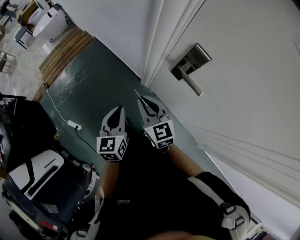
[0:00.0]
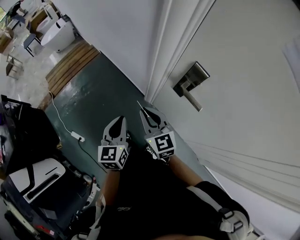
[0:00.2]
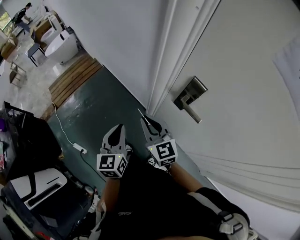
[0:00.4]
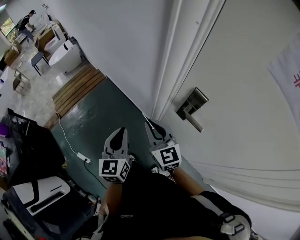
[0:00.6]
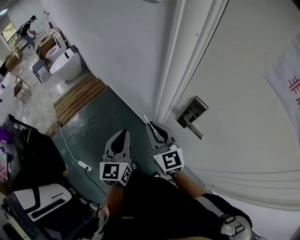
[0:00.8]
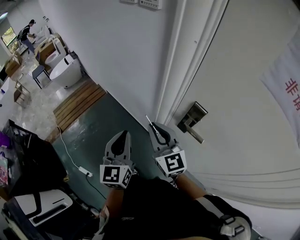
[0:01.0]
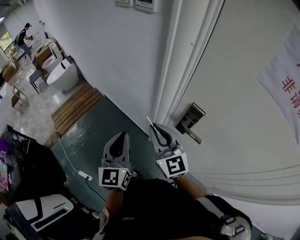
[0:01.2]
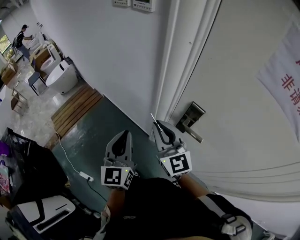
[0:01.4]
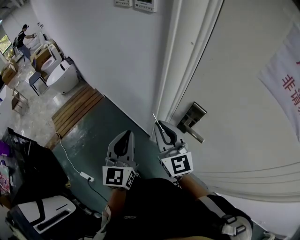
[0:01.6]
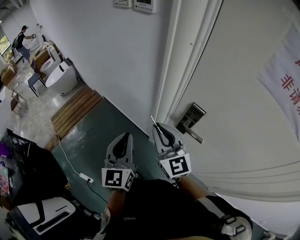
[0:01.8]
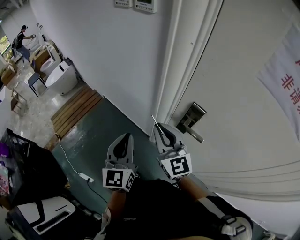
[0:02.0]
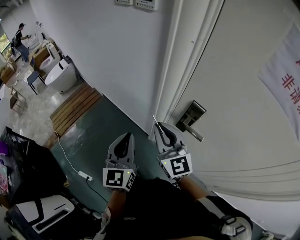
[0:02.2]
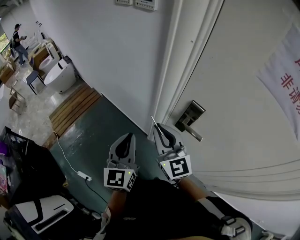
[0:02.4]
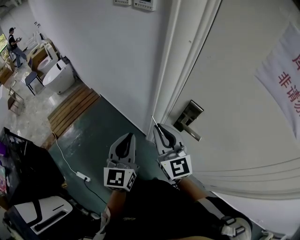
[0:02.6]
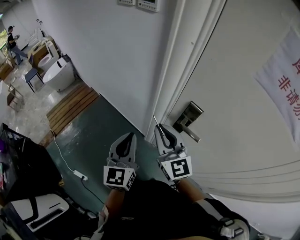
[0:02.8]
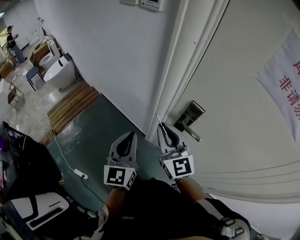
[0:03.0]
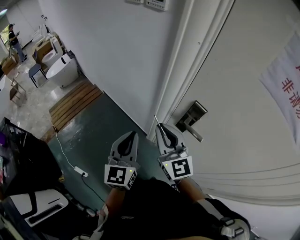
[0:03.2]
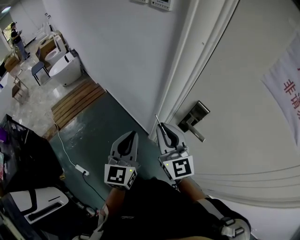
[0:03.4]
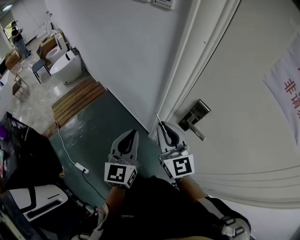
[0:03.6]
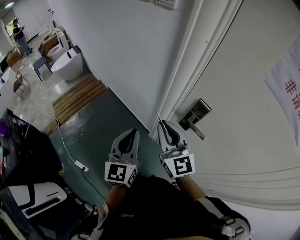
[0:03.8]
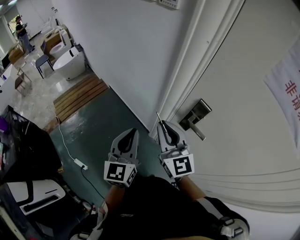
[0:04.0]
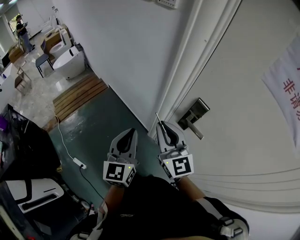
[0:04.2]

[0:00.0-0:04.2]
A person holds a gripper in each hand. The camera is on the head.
0:00.0 to 0:01.4: Both grippers travel together upward, about 20 cm. The left gripper rotates roughly 20 degrees. Meanwhile the right gripper changes its angle by approximately 20 degrees.
0:01.4 to 0:04.2: The grippers stay close to where they were, moving slightly.

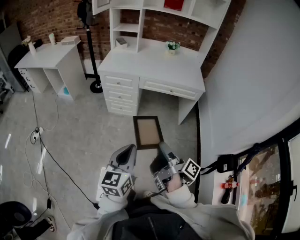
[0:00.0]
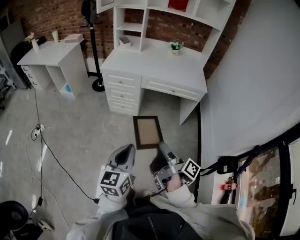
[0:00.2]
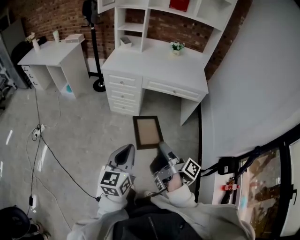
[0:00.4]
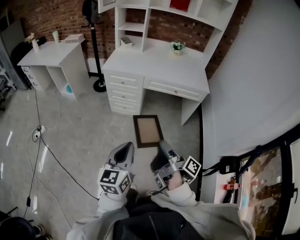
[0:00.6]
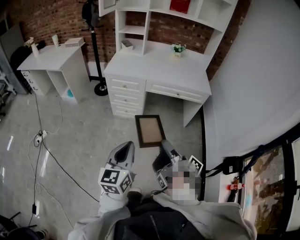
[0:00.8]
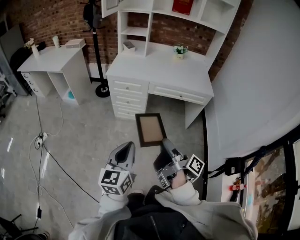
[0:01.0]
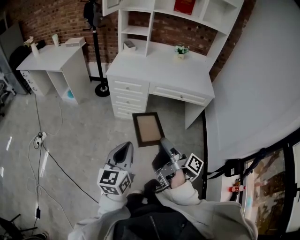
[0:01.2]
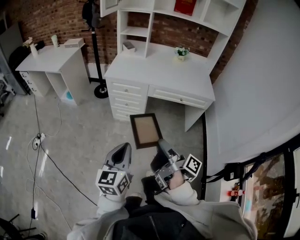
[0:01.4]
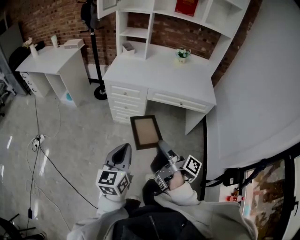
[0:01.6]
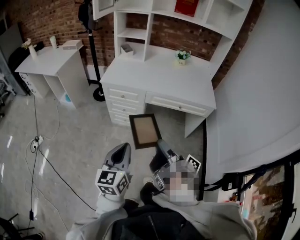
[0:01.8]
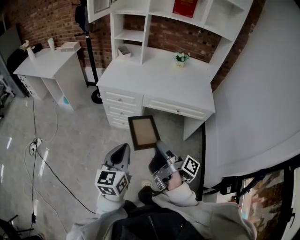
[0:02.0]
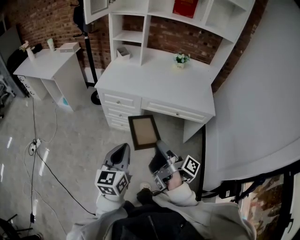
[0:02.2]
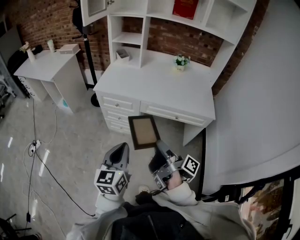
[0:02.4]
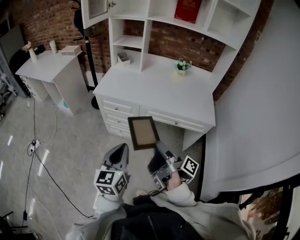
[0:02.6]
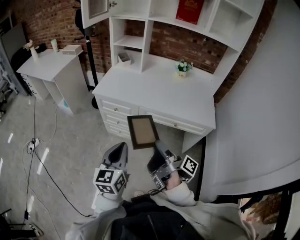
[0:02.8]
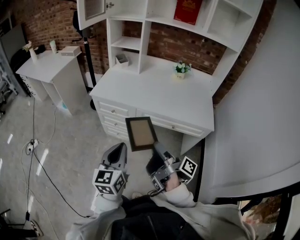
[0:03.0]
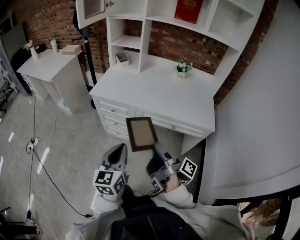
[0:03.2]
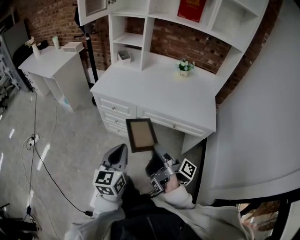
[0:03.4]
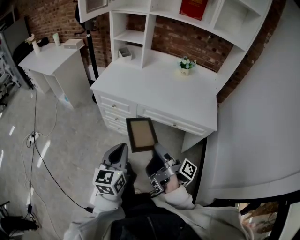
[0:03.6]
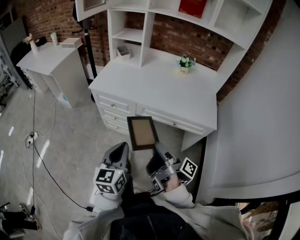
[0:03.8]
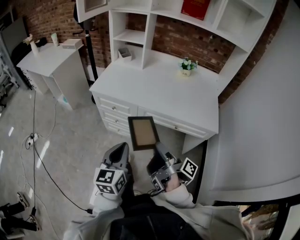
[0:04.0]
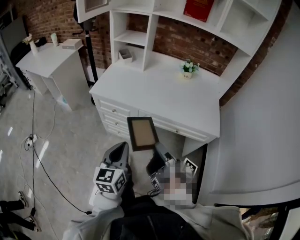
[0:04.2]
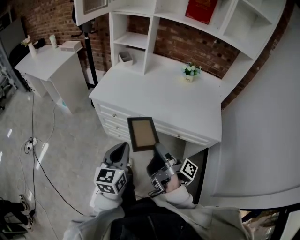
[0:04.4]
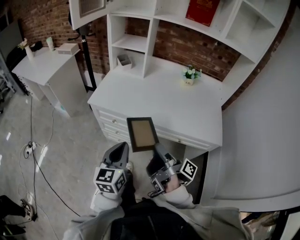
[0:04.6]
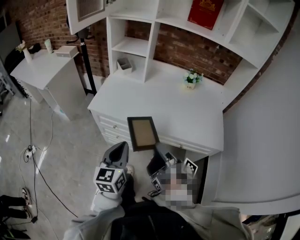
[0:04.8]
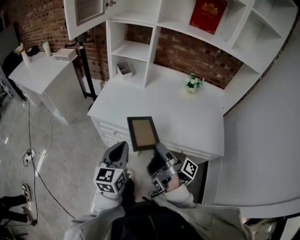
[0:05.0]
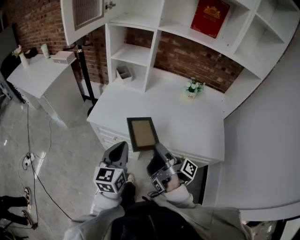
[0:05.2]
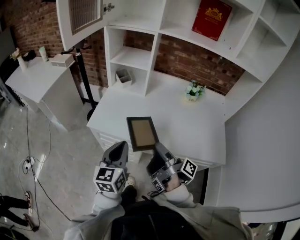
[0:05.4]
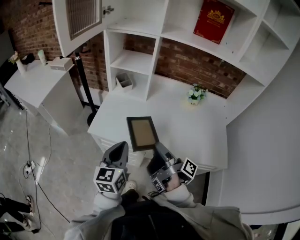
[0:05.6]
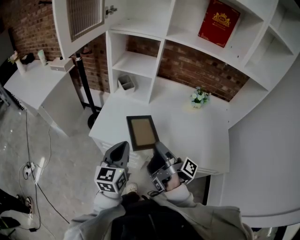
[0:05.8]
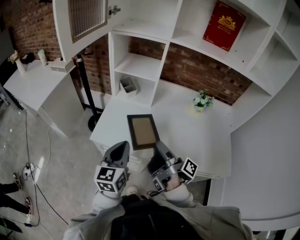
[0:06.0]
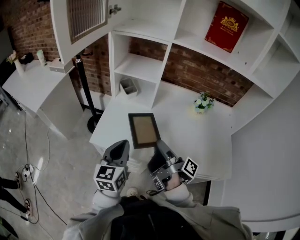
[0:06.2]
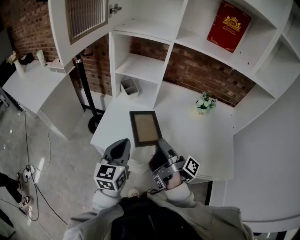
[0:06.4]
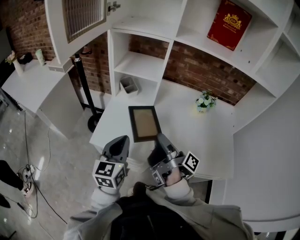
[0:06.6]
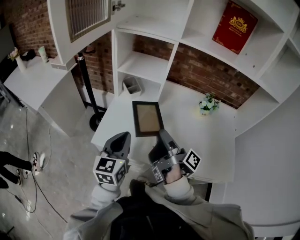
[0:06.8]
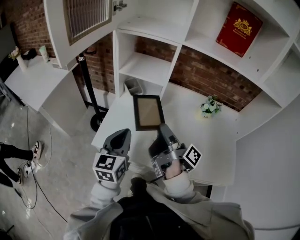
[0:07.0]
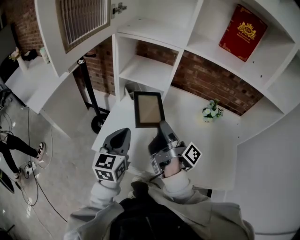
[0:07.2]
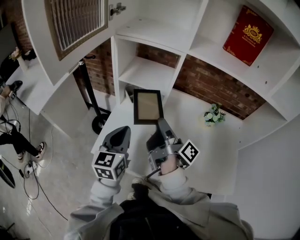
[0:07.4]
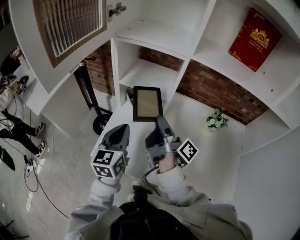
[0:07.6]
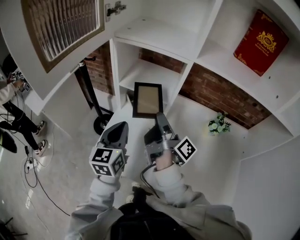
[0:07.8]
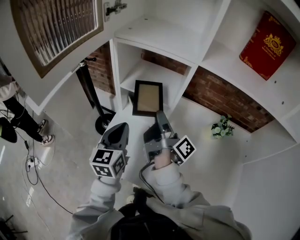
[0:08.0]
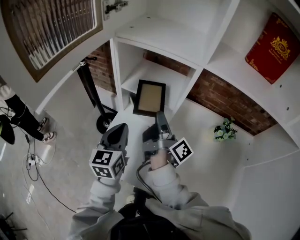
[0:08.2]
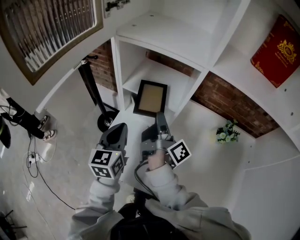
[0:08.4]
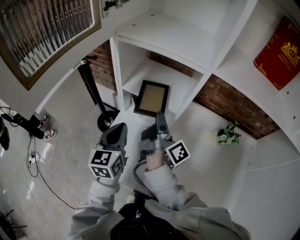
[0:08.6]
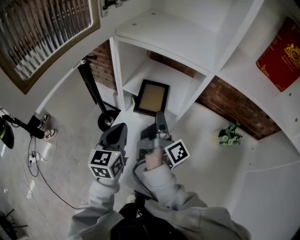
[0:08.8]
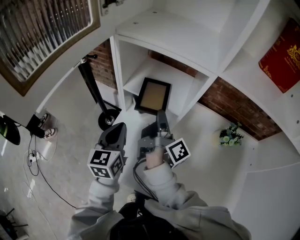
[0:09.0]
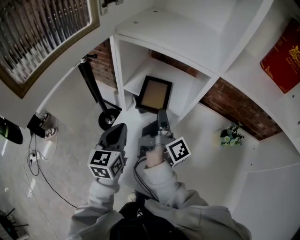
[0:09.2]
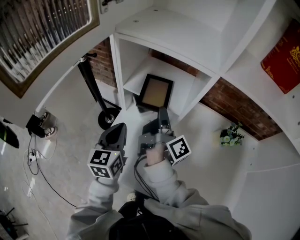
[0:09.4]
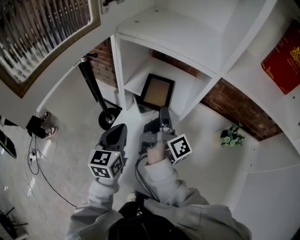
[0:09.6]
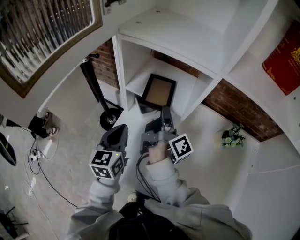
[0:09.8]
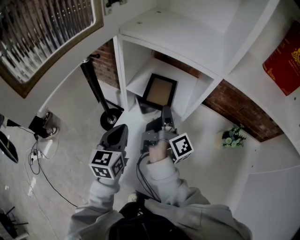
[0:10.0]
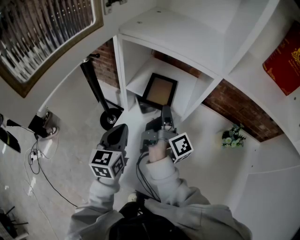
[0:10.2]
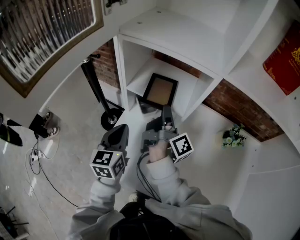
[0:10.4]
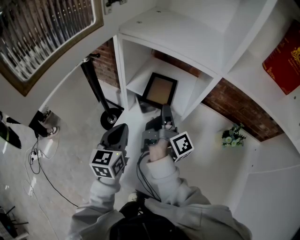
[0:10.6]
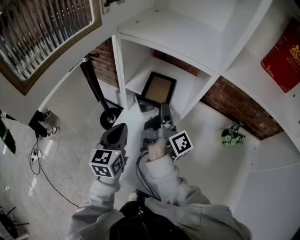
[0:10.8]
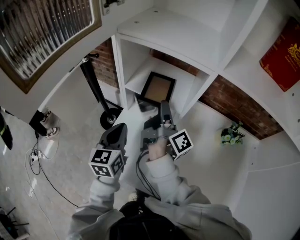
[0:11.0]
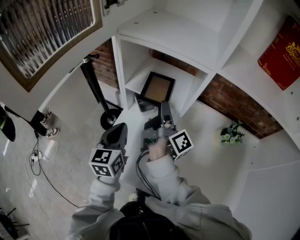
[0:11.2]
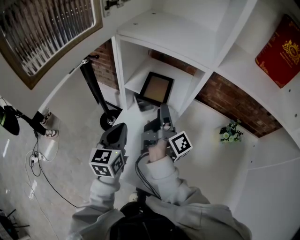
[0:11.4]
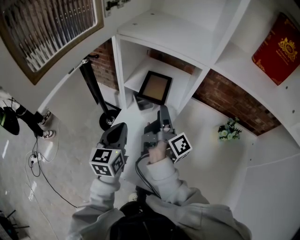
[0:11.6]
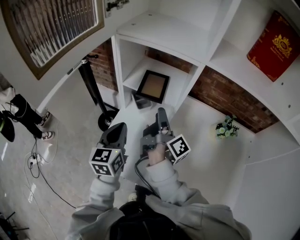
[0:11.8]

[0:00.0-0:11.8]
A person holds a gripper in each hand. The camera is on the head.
0:00.0 to 0:01.4: The left gripper ends up some 15 cm from where it was.
0:01.4 to 0:03.0: The left gripper changes place by approximately 25 cm.
0:03.0 to 0:04.4: The left gripper changes place by some 10 cm.
0:04.4 to 0:06.0: The left gripper ends up about 30 cm from where it was.
0:06.0 to 0:07.4: The left gripper ends up roughly 15 cm from where it was.
0:07.4 to 0:08.8: The left gripper changes place by about 15 cm.

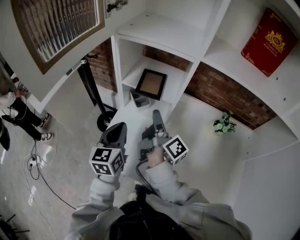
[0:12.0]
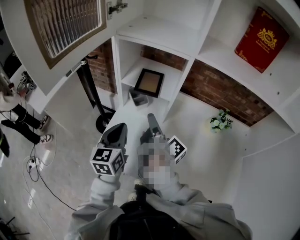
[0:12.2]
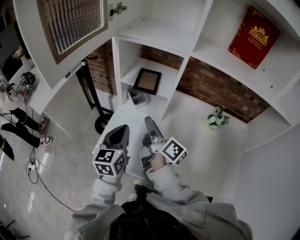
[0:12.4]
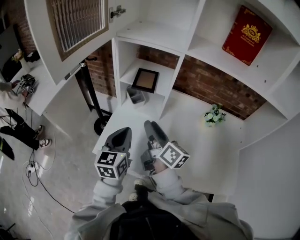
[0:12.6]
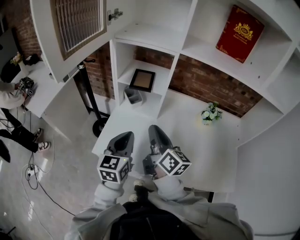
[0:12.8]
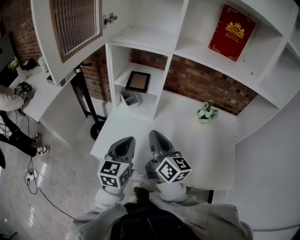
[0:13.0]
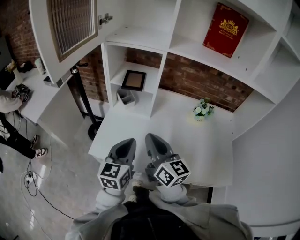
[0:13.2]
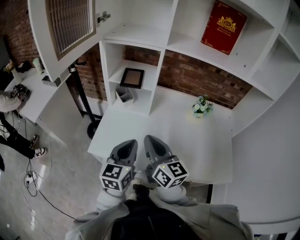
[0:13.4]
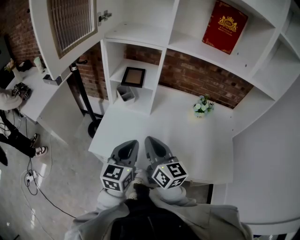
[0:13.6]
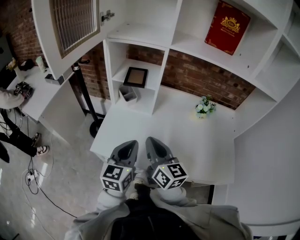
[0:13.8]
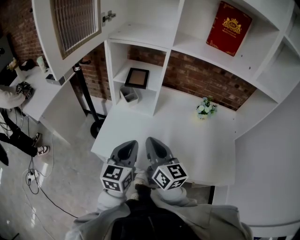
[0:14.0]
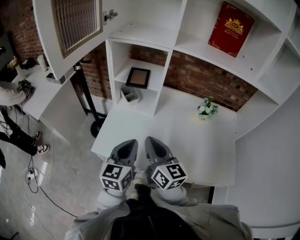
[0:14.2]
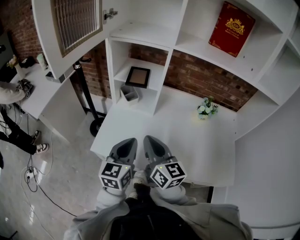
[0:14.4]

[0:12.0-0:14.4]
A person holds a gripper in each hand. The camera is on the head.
0:12.0 to 0:13.2: The left gripper ends up about 20 cm from where it was.

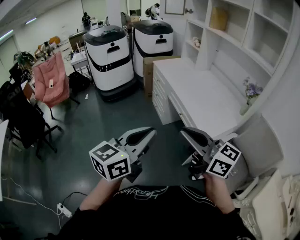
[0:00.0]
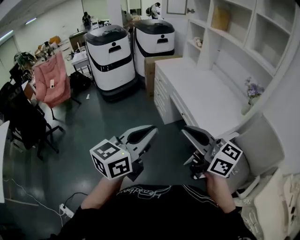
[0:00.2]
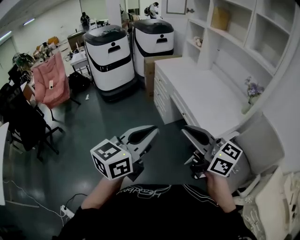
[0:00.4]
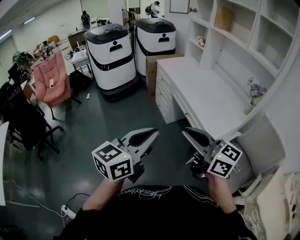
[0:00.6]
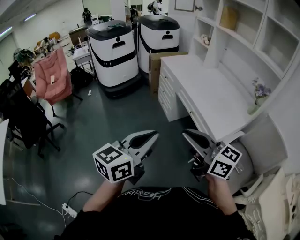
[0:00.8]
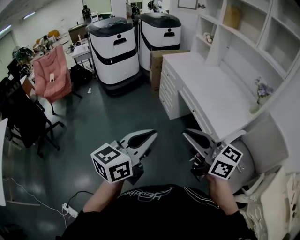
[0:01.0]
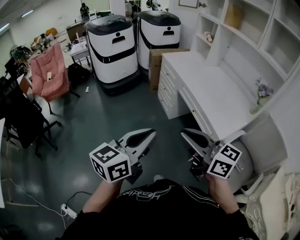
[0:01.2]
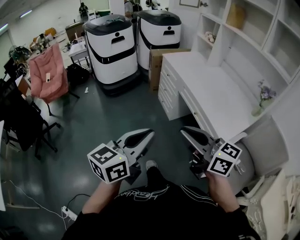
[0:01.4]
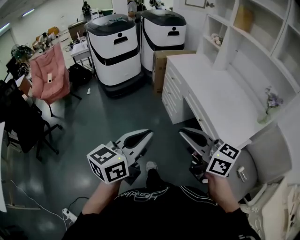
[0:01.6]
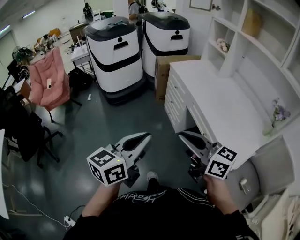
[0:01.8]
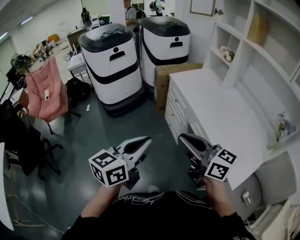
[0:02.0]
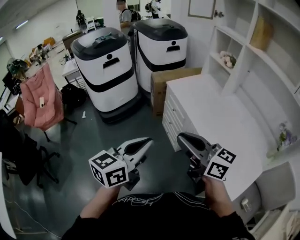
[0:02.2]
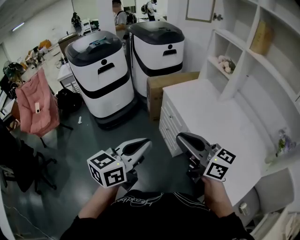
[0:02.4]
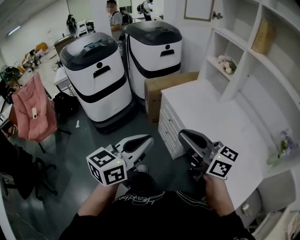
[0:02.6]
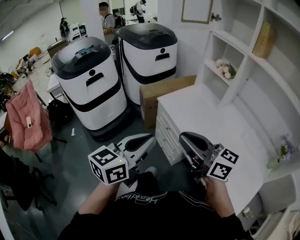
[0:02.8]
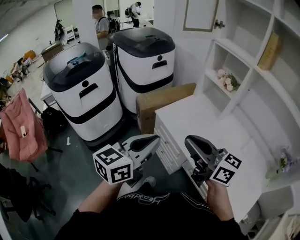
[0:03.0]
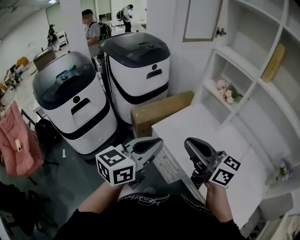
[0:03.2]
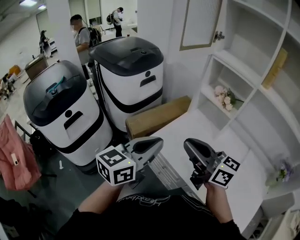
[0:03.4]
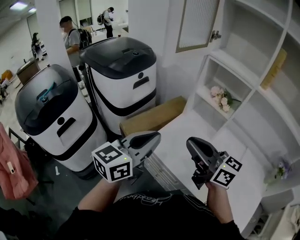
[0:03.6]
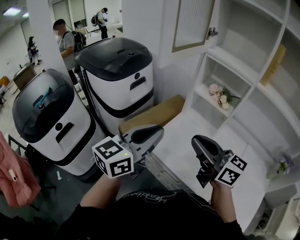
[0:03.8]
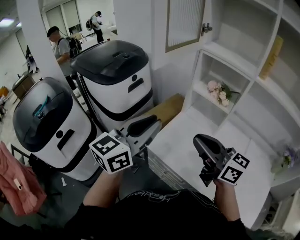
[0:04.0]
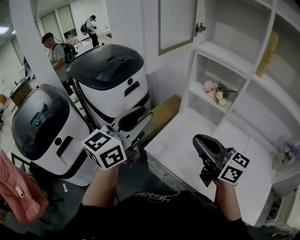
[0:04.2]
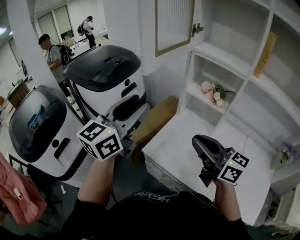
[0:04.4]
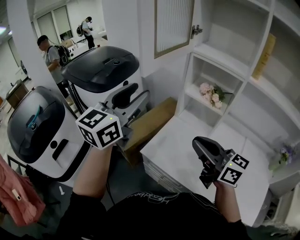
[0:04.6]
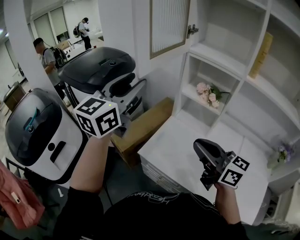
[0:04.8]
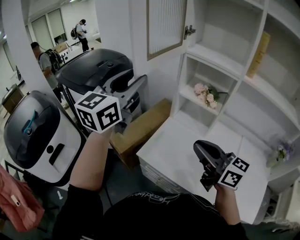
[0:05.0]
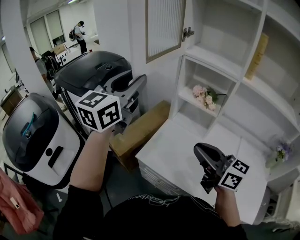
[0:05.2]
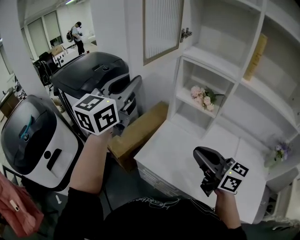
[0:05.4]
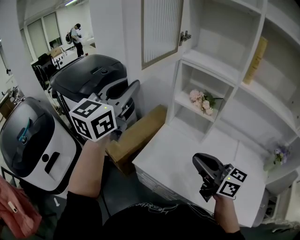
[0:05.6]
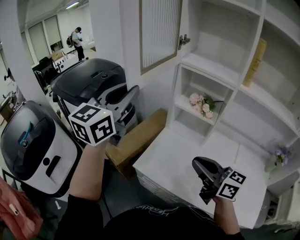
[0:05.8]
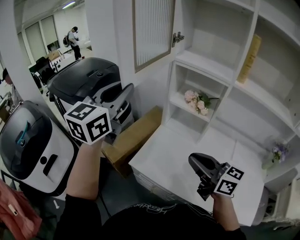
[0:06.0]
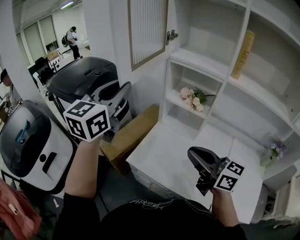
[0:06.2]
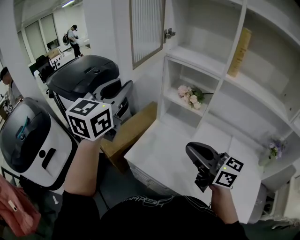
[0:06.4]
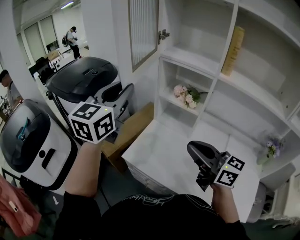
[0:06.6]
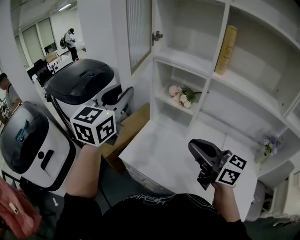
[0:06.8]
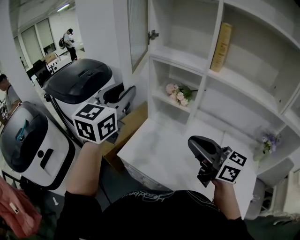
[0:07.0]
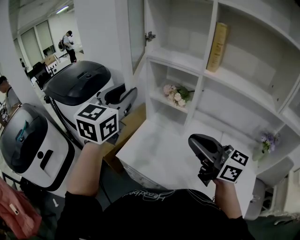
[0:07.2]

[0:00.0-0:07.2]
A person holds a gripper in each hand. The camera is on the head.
0:00.0 to 0:01.4: The two grippers go roughly 15 cm to the left and forward.
0:01.4 to 0:02.8: Both grippers are carried forward, about 60 cm.
0:02.8 to 0:04.4: Both grippers travel together forward, roughly 40 cm. The right gripper rotates about 30 degrees. Meanwhile the left gripper swivels some 20 degrees, and opens.
0:04.4 to 0:05.8: The left gripper is displaced forward and upward by some 10 cm. The right gripper moves roughly 5 cm.
0:05.8 to 0:07.2: The left gripper travels to the right and backward by about 15 cm, while the right gripper moves upward, to the right and backward, about 15 cm.
